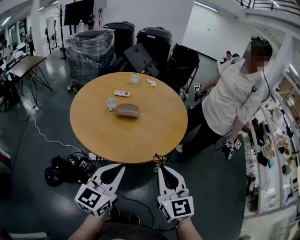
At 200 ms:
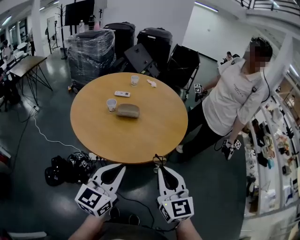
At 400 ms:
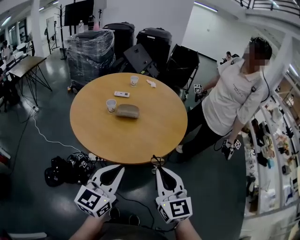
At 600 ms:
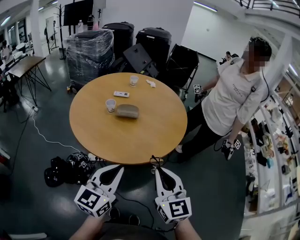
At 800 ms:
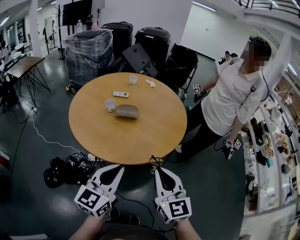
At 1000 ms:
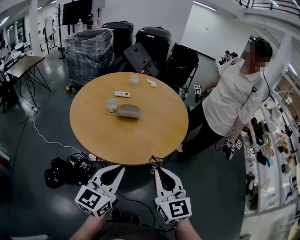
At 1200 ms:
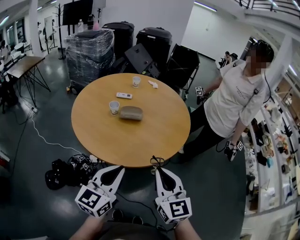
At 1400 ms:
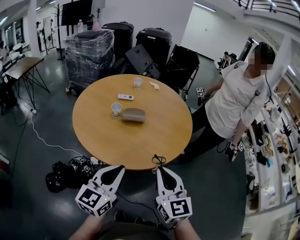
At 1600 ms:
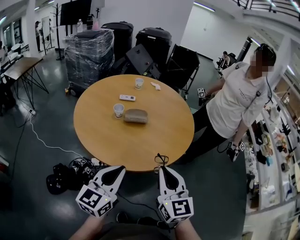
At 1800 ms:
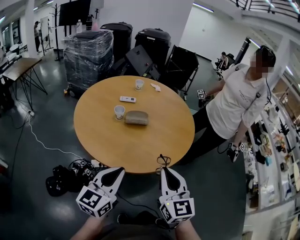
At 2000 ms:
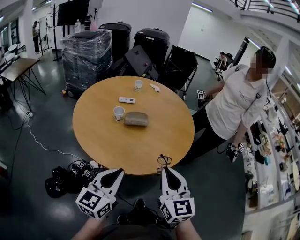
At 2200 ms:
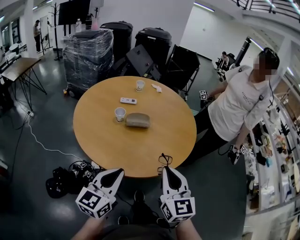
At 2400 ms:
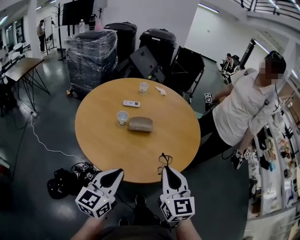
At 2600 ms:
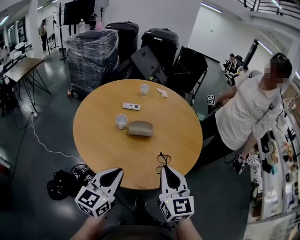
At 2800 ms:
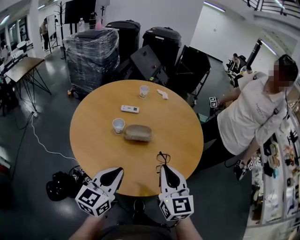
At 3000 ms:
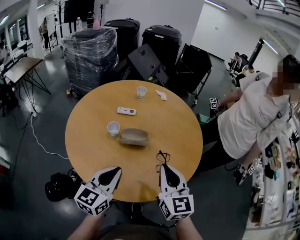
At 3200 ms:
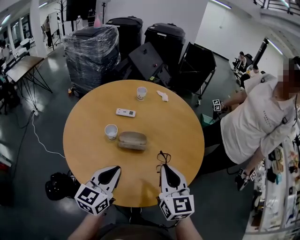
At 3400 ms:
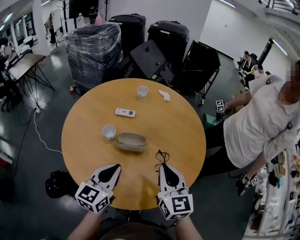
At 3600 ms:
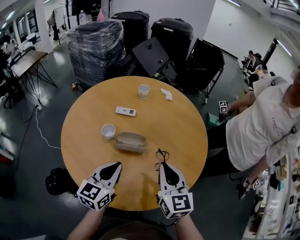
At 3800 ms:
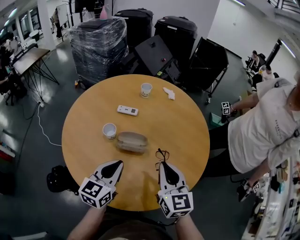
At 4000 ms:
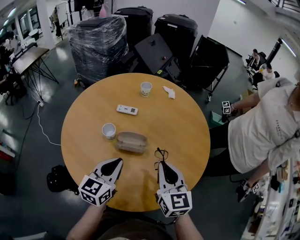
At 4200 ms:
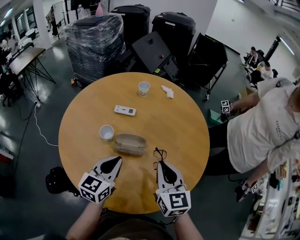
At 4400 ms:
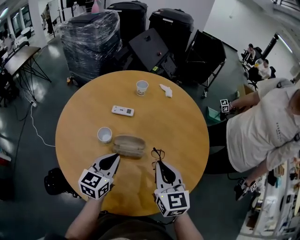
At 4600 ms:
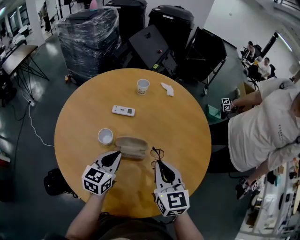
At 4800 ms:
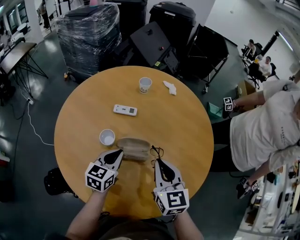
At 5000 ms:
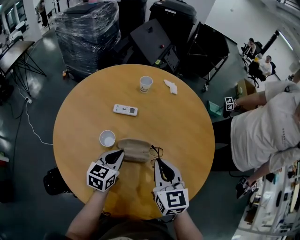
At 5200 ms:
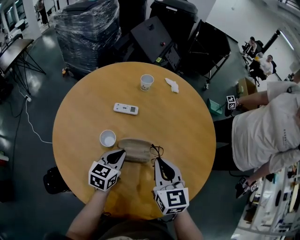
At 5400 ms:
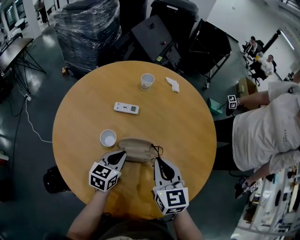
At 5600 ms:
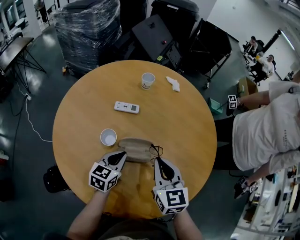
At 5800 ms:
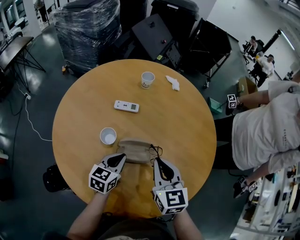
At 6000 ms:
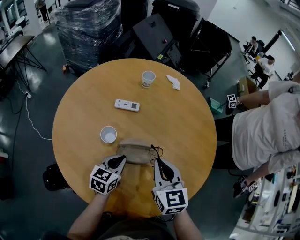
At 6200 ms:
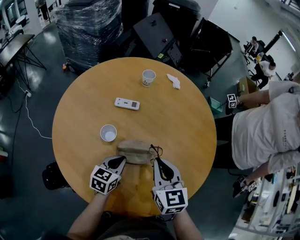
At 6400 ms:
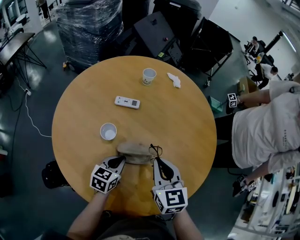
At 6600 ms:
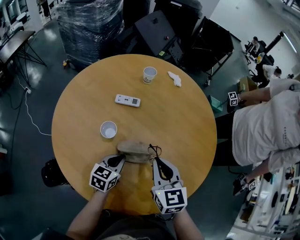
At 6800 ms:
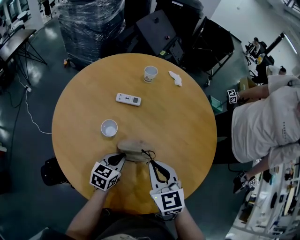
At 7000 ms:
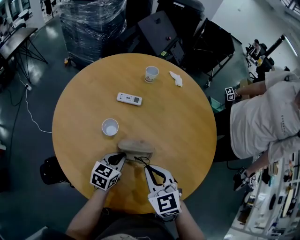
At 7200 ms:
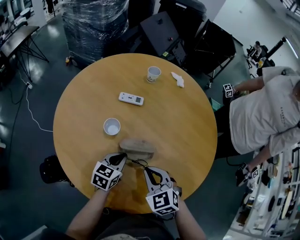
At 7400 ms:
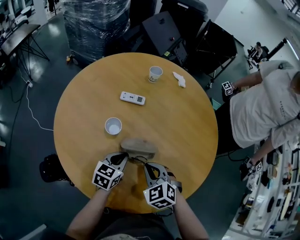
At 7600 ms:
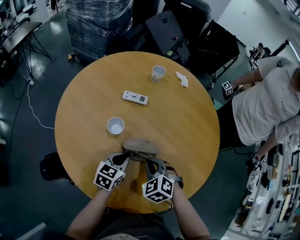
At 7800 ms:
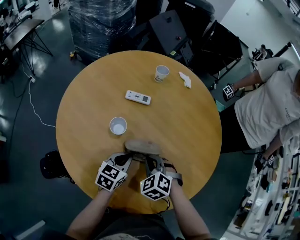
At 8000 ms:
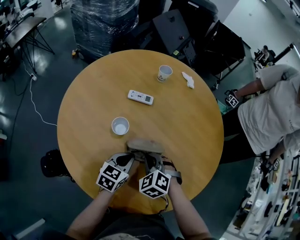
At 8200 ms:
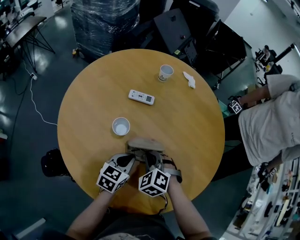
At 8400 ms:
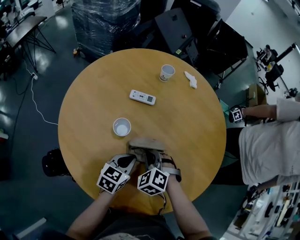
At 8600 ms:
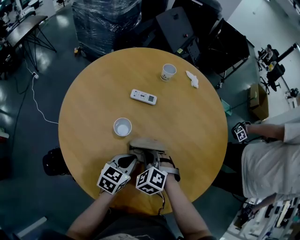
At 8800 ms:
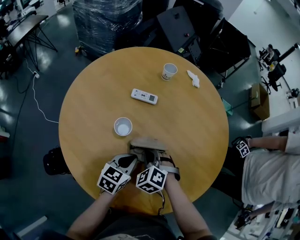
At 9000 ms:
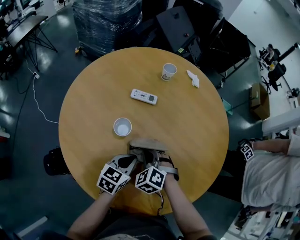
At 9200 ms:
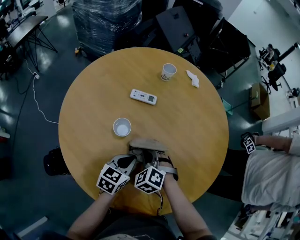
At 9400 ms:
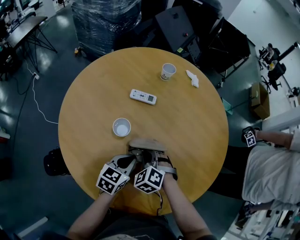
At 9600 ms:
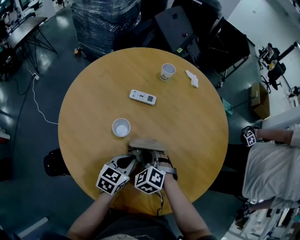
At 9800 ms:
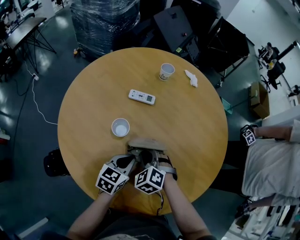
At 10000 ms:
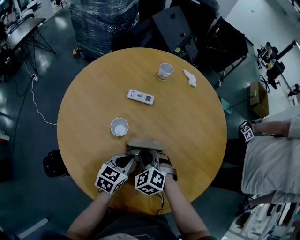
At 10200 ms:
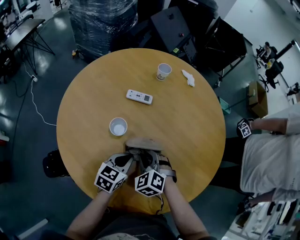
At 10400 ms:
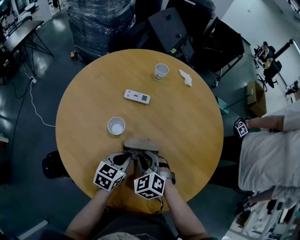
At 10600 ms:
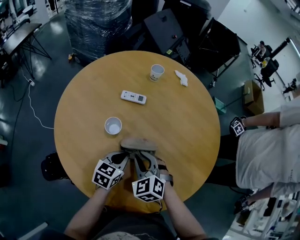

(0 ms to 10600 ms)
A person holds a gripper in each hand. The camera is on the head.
0 ms - 1600 ms: Both grippers move to the left, some 10 cm.
1600 ms - 3000 ms: The two grippers go about 20 cm forward.
3000 ms - 4600 ms: Both grippers travel together forward and downward, approximately 20 cm.
4600 ms - 6000 ms: The right gripper shifts by about 5 cm. The left gripper goes roughly 10 cm downward.
6000 ms - 7600 ms: The right gripper heads downward, covering approximately 10 cm, and angles its fingers downward, by approximately 30 degrees.
7600 ms - 9000 ms: The right gripper travels to the left by about 5 cm.
9000 ms - 10600 ms: The right gripper shifts about 5 cm upward.

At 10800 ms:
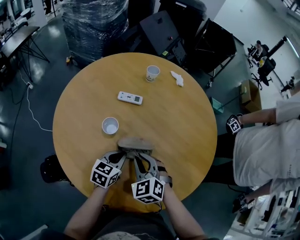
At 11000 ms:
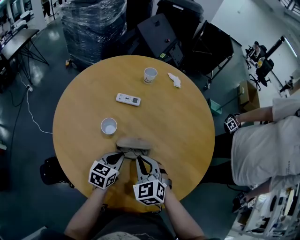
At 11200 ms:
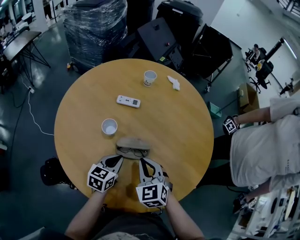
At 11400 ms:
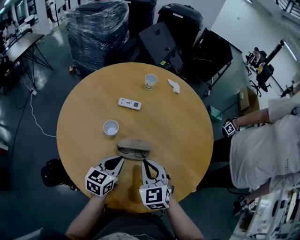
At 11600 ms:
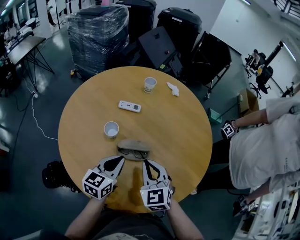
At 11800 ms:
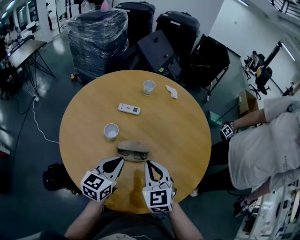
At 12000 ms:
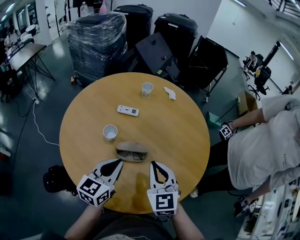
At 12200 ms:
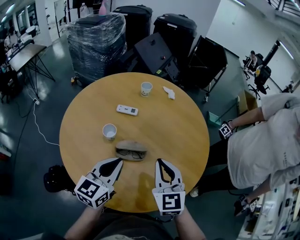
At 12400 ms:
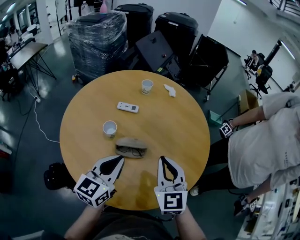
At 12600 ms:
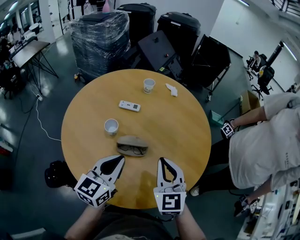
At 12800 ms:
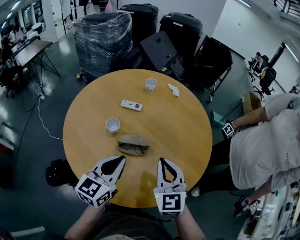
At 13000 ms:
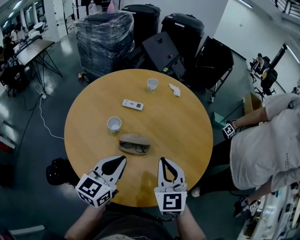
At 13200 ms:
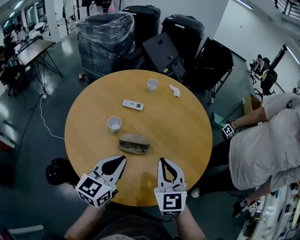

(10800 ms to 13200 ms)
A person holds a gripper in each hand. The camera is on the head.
10800 ms - 12000 ms: The left gripper travels upward by approximately 15 cm, and rotates roughly 20 degrees; the right gripper shifts roughly 15 cm upward and to the right, and changes its angle by roughly 30 degrees.
12000 ms - 13200 ms: The left gripper shifts by some 5 cm. The right gripper moves roughly 5 cm.

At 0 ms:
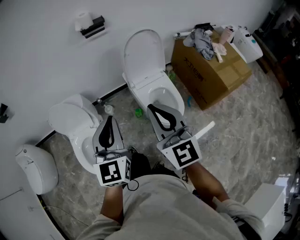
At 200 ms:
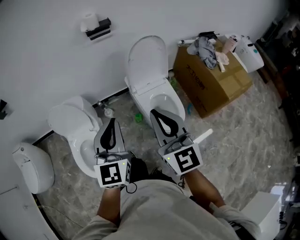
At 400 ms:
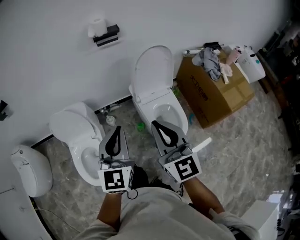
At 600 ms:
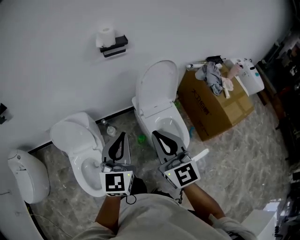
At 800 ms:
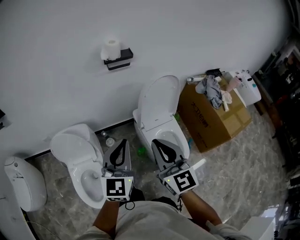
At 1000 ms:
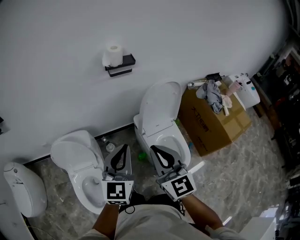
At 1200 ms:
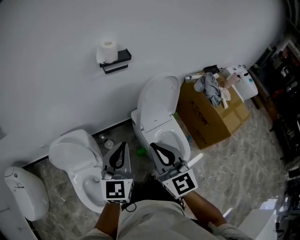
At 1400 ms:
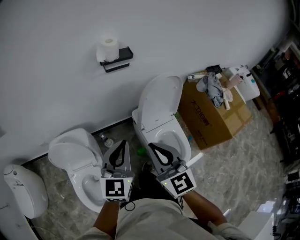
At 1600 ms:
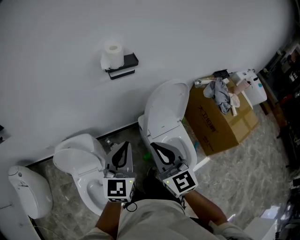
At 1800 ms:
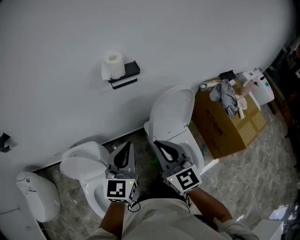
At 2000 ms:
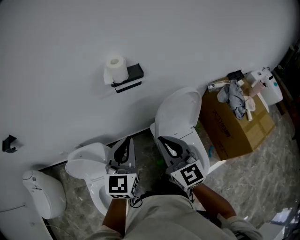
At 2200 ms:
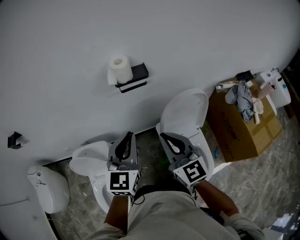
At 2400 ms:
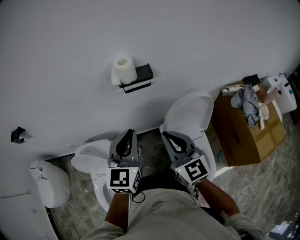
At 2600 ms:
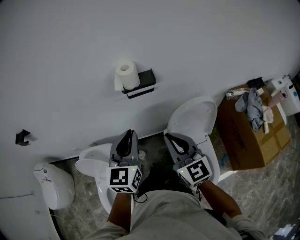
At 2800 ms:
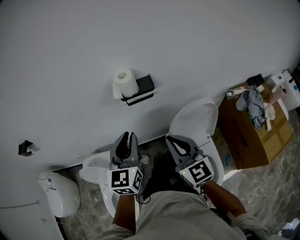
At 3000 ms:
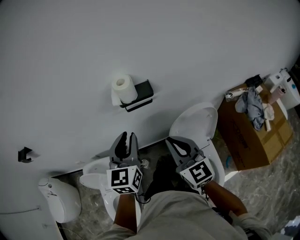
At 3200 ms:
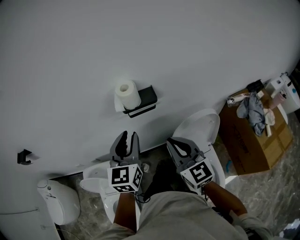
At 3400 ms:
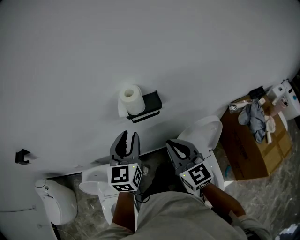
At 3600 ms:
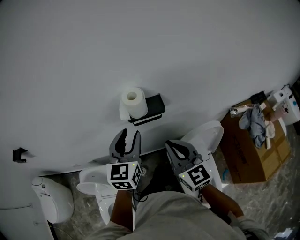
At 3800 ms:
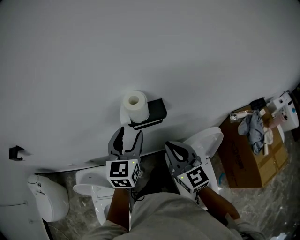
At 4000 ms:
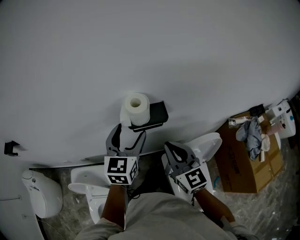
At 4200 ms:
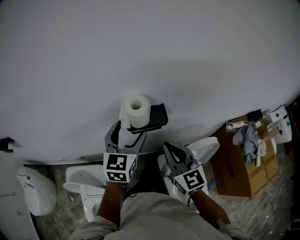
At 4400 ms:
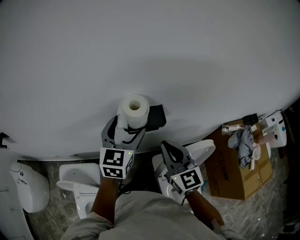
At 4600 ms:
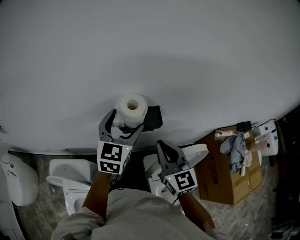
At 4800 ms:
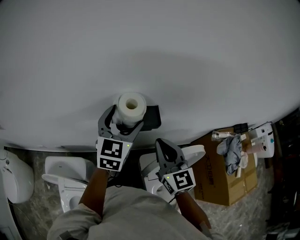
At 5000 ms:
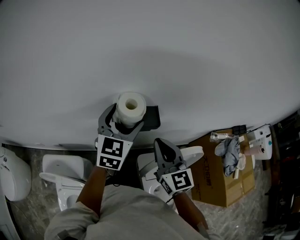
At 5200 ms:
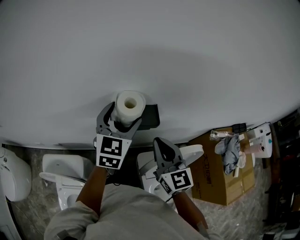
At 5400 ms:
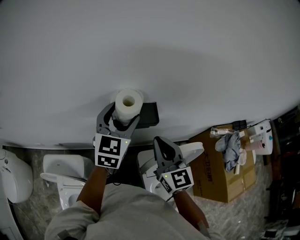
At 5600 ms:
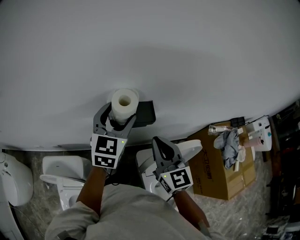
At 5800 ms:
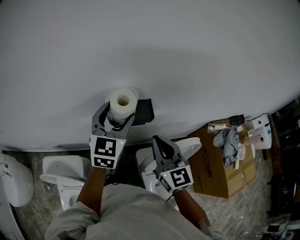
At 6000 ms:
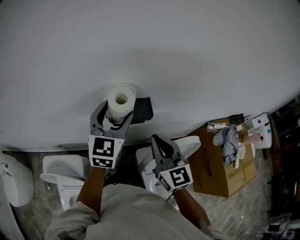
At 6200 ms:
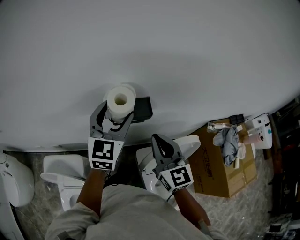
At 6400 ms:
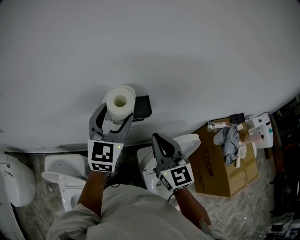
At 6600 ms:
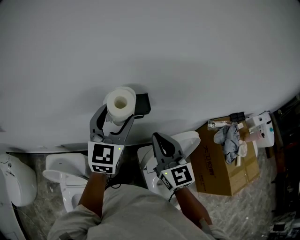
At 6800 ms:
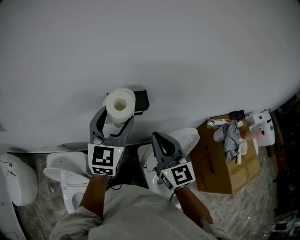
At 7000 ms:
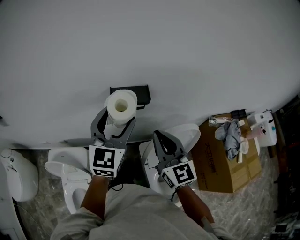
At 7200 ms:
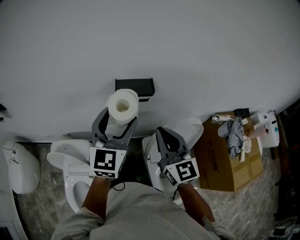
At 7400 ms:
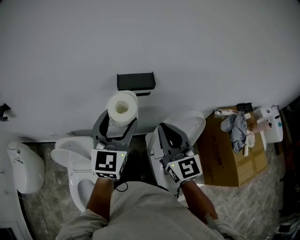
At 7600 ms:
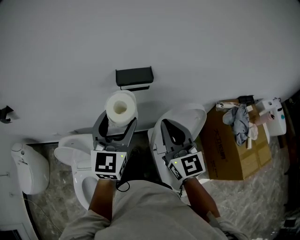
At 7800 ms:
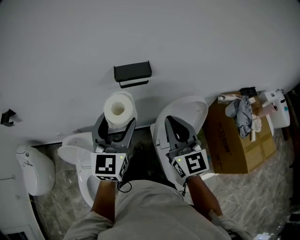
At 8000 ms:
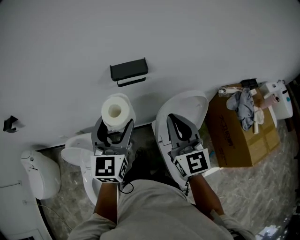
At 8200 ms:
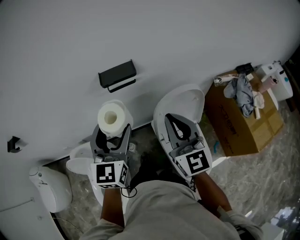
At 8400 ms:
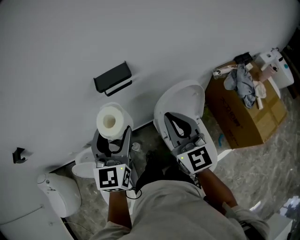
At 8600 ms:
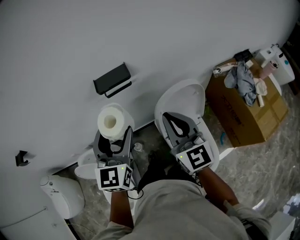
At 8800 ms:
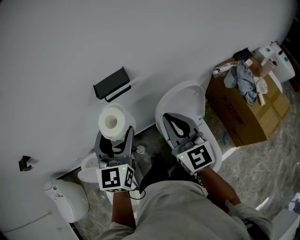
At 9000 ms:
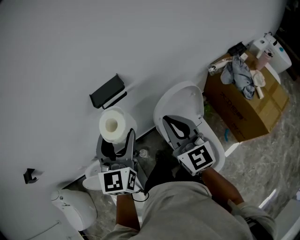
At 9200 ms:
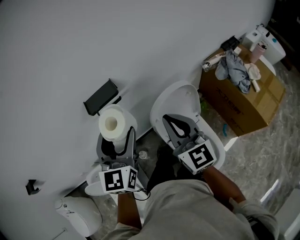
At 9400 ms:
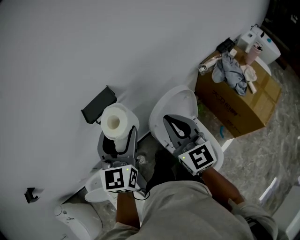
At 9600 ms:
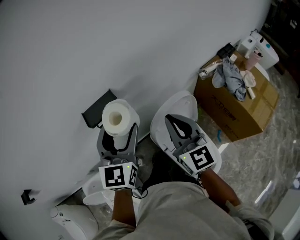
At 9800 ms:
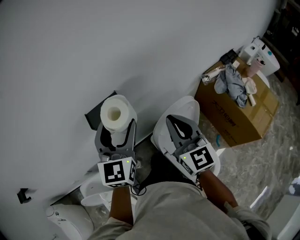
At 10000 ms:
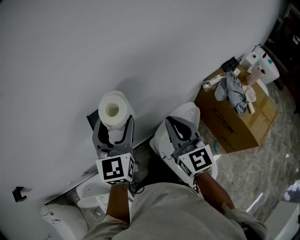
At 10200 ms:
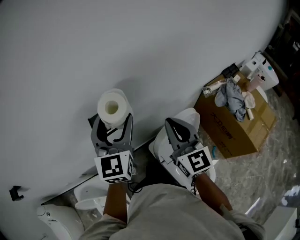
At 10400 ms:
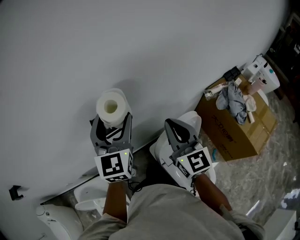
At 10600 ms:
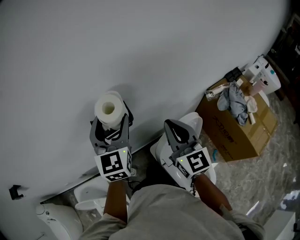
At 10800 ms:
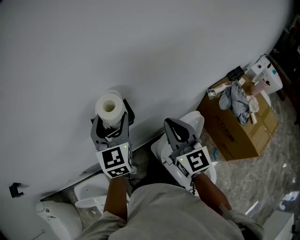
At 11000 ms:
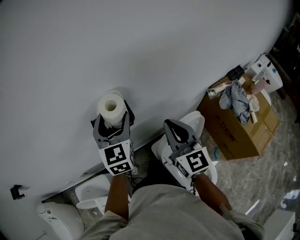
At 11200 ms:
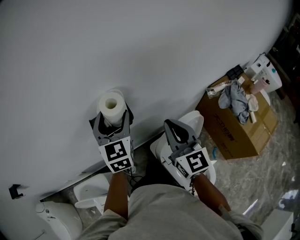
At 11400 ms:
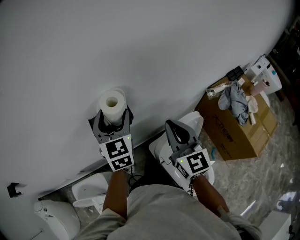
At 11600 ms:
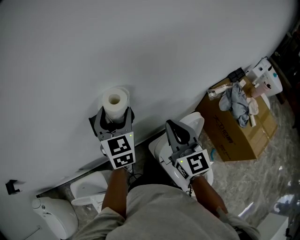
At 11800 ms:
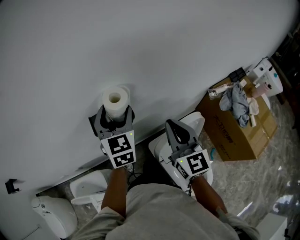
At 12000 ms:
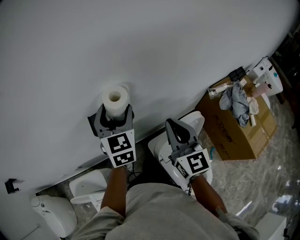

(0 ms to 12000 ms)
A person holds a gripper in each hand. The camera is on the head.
0 ms - 1600 ms: The left gripper heads forward, covering approximately 25 cm, while the right gripper heads forward and to the left, covering some 25 cm.
1600 ms - 3000 ms: The left gripper is displaced forward by about 20 cm, while the right gripper travels forward and to the right by about 20 cm.
3000 ms - 4400 ms: Both grippers move forward, roughly 15 cm. The left gripper opens.
4400 ms - 6000 ms: The grippers move only a little.
6000 ms - 7600 ms: Both grippers move backward, approximately 20 cm.
7600 ms - 9000 ms: The two grippers go about 5 cm to the right.
9000 ms - 10400 ms: Both grippers travel together forward, about 15 cm.
10400 ms - 12000 ms: The left gripper goes some 10 cm downward and forward.
